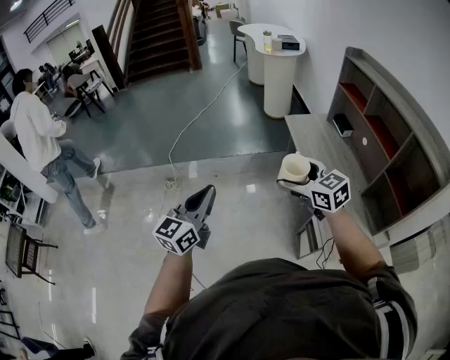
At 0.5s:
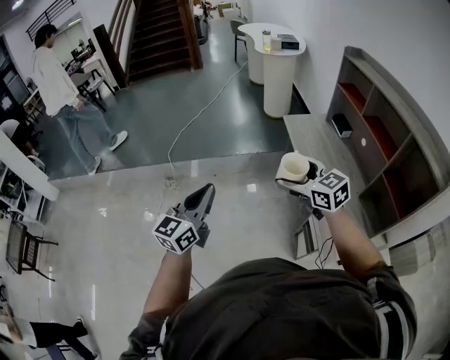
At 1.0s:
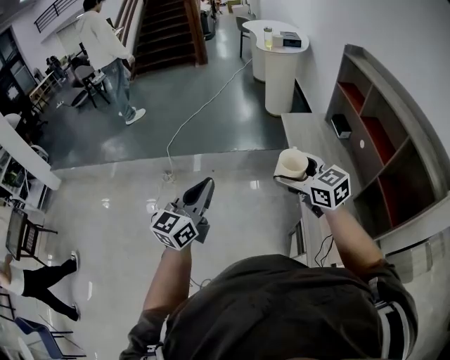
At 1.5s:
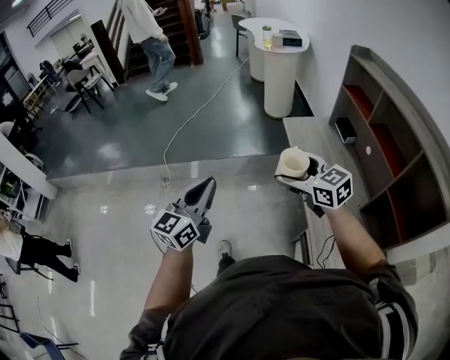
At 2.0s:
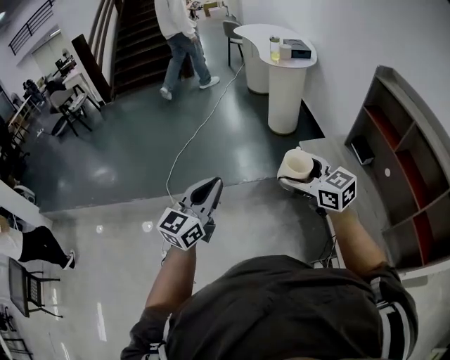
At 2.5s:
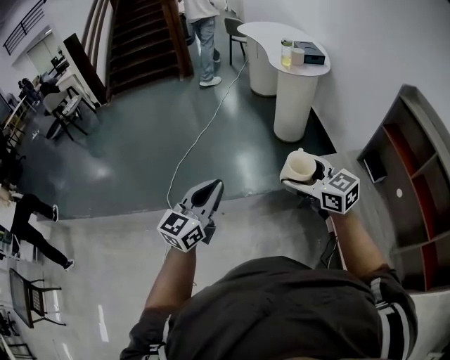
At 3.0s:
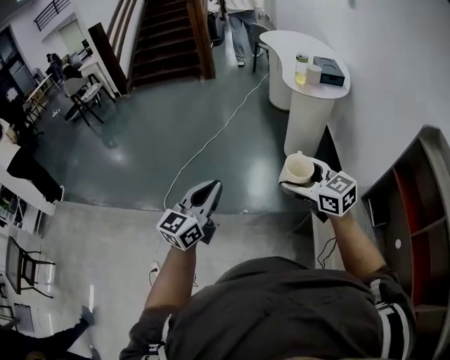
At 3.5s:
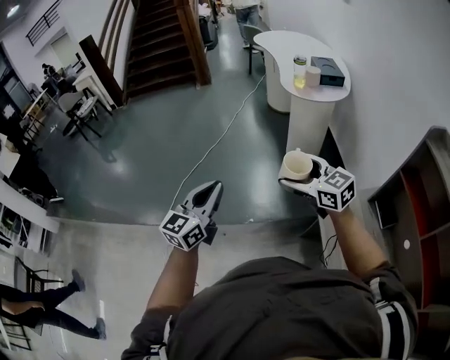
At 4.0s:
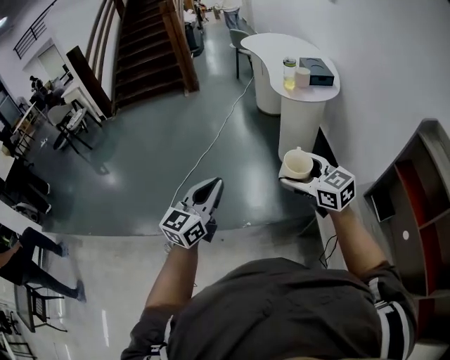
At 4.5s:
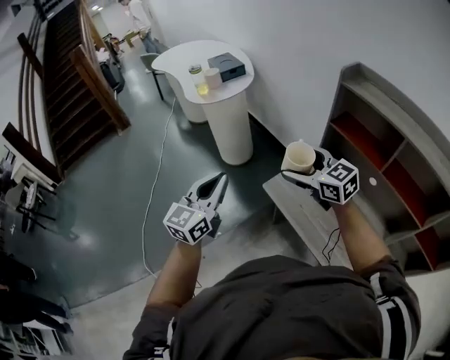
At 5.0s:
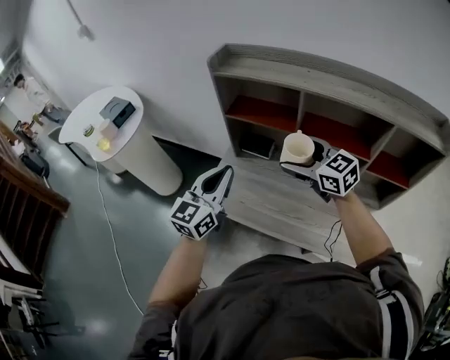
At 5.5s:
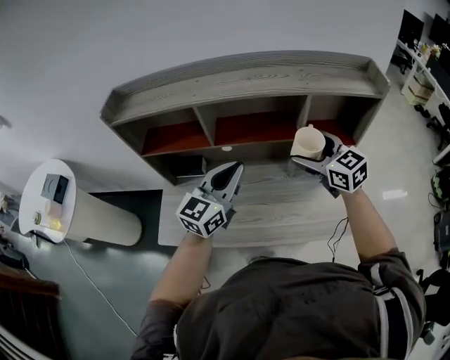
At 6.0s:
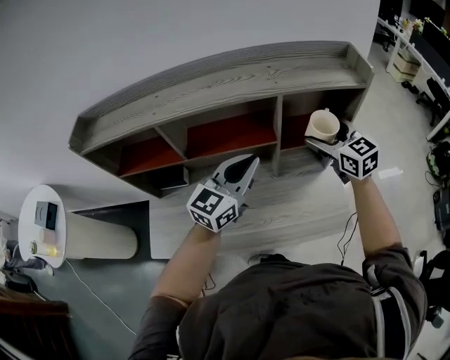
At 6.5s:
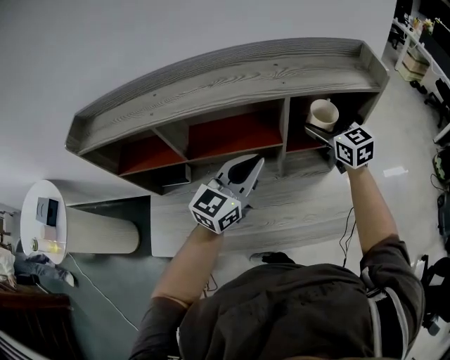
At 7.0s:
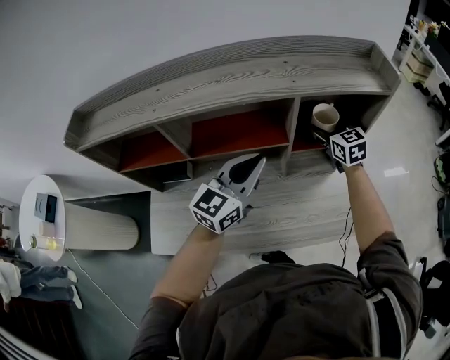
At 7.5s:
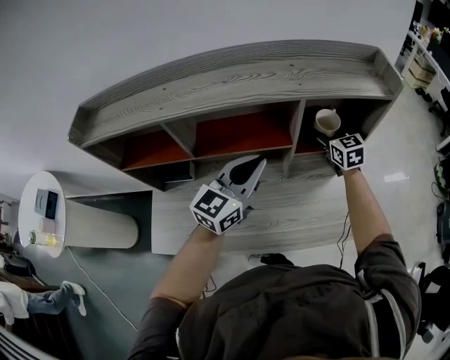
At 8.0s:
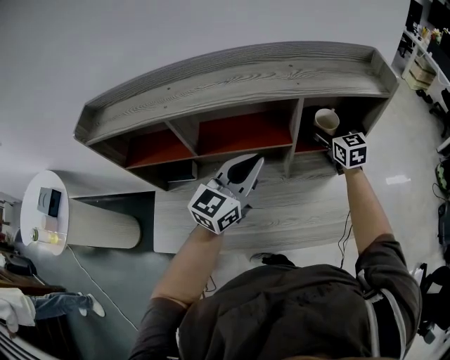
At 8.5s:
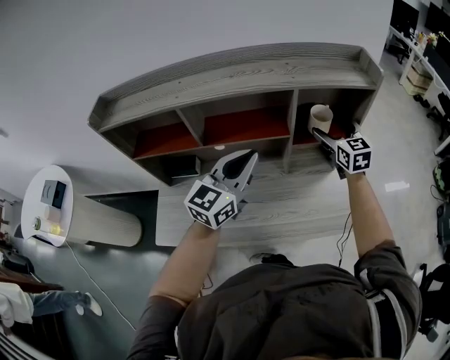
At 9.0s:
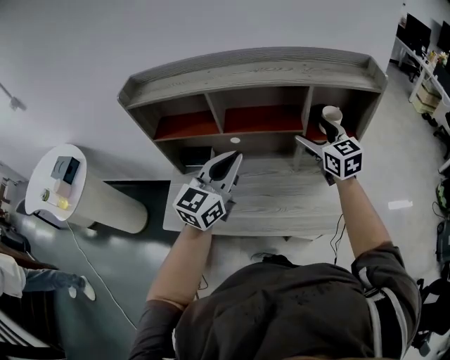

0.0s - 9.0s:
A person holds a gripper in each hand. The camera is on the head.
0.0s - 2.0s: Both grippers move forward, about 30 cm.
2.0s - 4.5s: The right gripper changes place by roughly 40 cm, and swivels roughly 20 degrees. The left gripper shifts by some 40 cm, and swivels about 20 degrees.
4.5s - 7.0s: The two grippers travel together, some 70 cm. The right gripper rotates approximately 80 degrees. The left gripper turns by roughly 70 degrees.
7.0s - 9.0s: The right gripper travels backward, upward and to the left by about 25 cm, while the left gripper goes about 20 cm backward, to the left and upward.

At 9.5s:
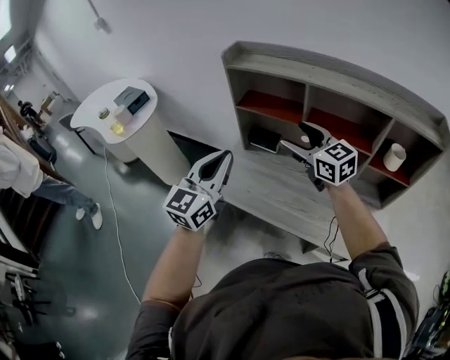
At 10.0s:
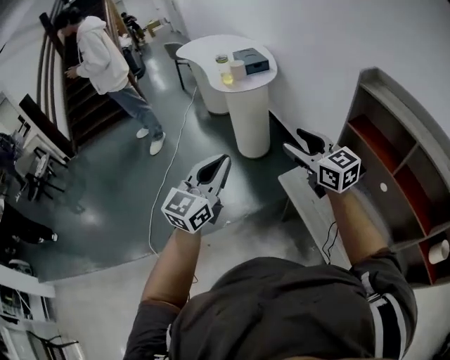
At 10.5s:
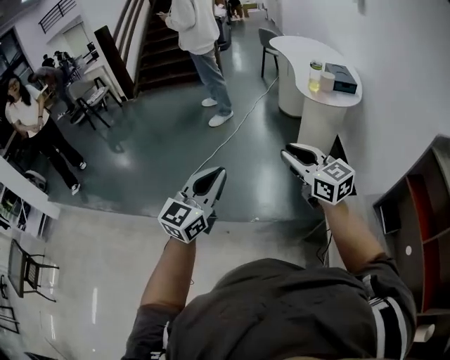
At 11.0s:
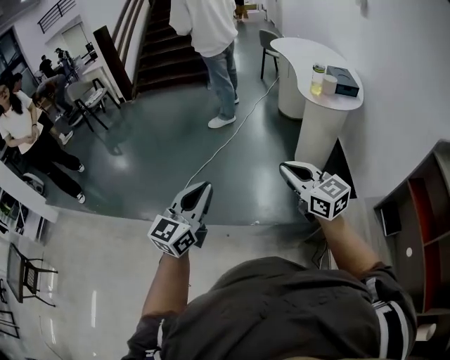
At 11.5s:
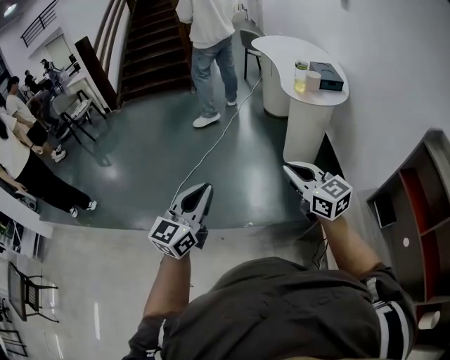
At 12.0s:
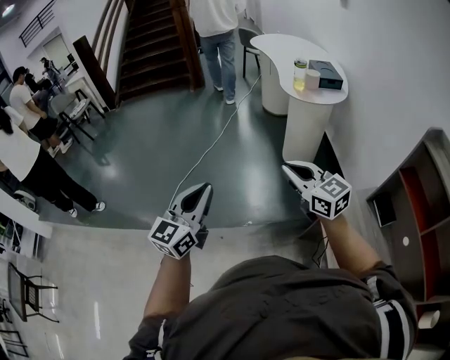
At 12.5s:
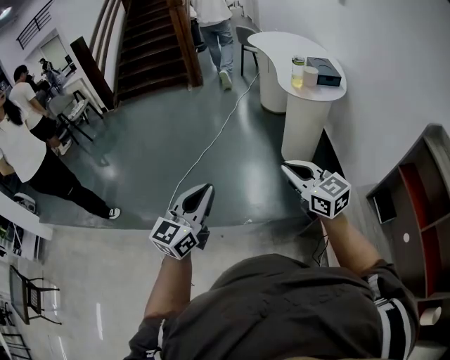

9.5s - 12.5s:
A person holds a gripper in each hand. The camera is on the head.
9.5s - 11.0s: The two grippers travel together, roughly 50 cm. The left gripper rotates approximately 60 degrees; the right gripper swivels some 70 degrees, and closes its fingers.
11.0s - 12.5s: The grippers stay close to where they were, moving slightly.

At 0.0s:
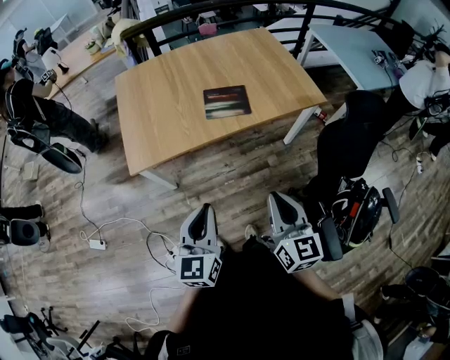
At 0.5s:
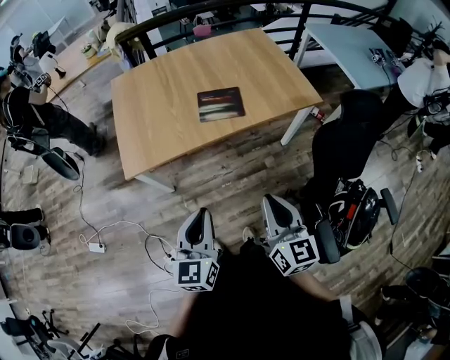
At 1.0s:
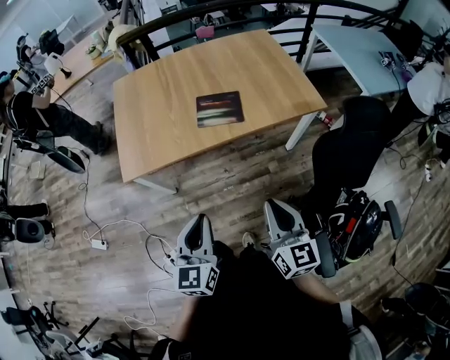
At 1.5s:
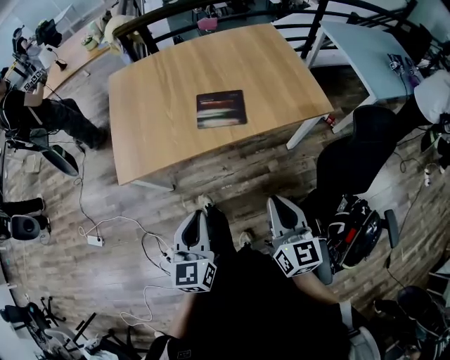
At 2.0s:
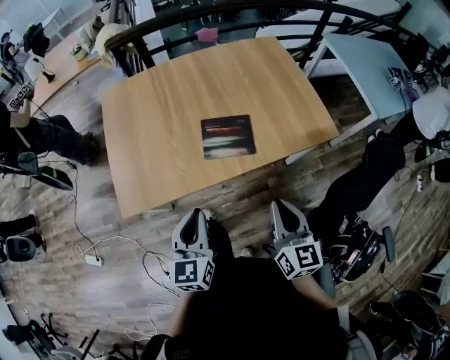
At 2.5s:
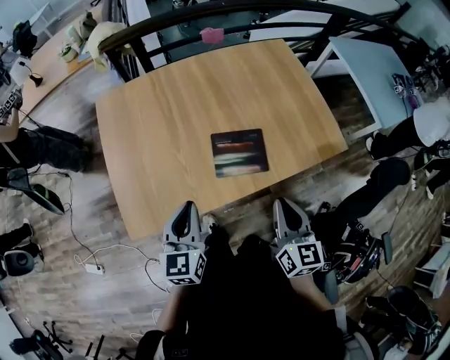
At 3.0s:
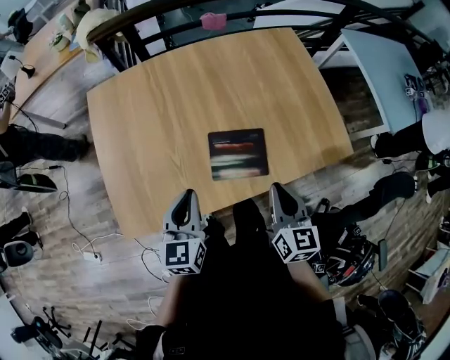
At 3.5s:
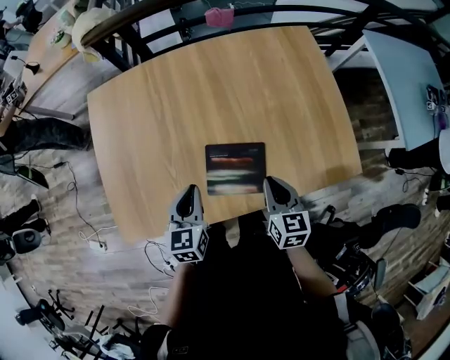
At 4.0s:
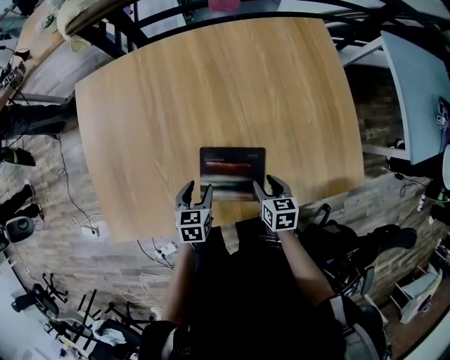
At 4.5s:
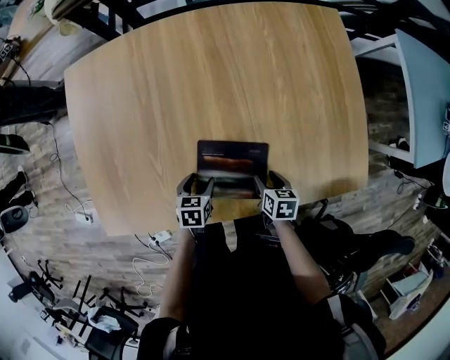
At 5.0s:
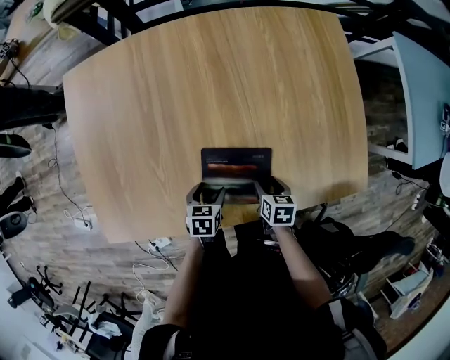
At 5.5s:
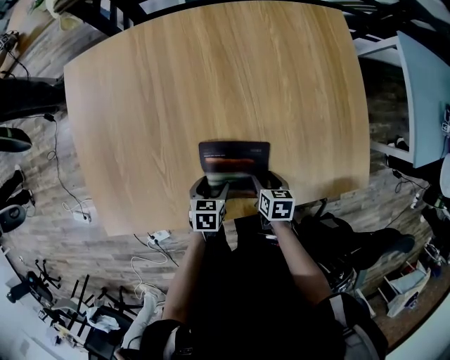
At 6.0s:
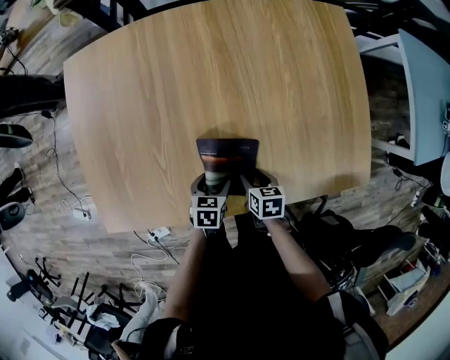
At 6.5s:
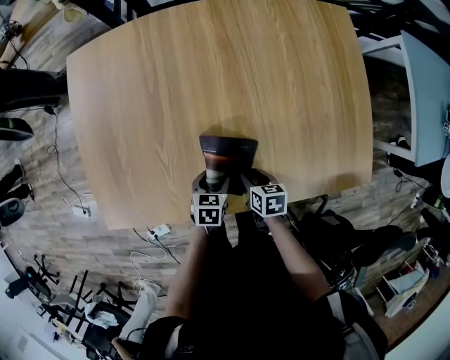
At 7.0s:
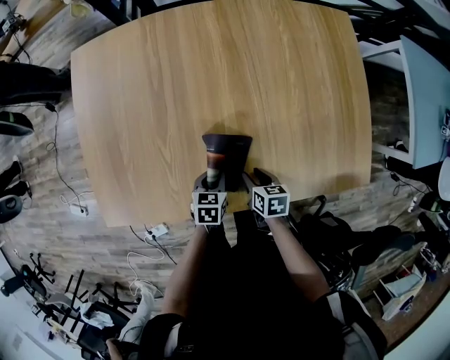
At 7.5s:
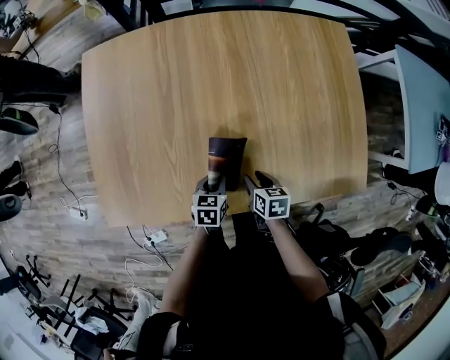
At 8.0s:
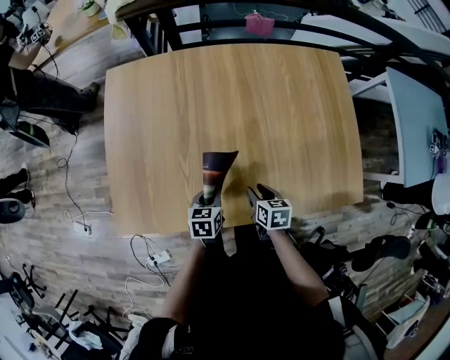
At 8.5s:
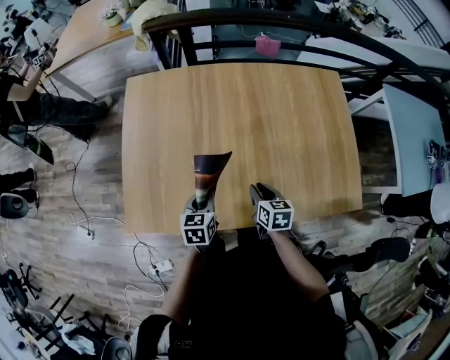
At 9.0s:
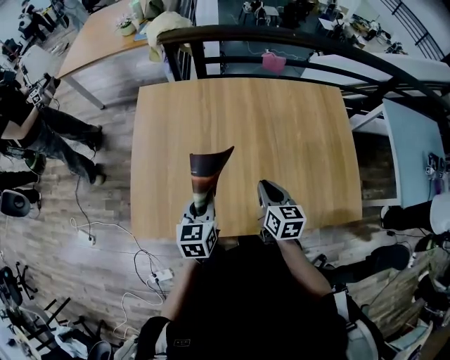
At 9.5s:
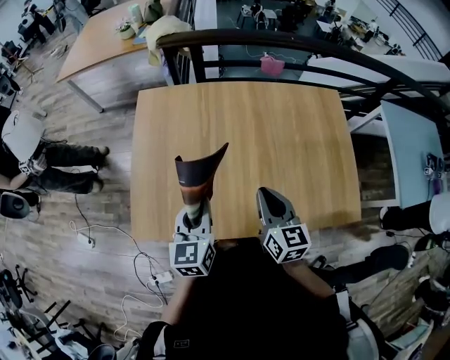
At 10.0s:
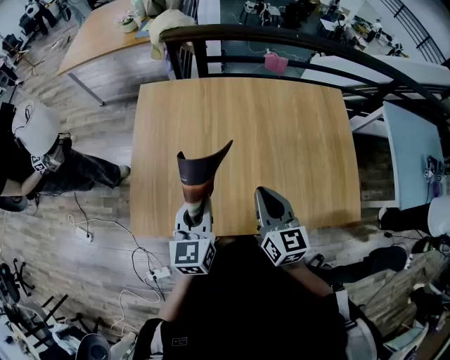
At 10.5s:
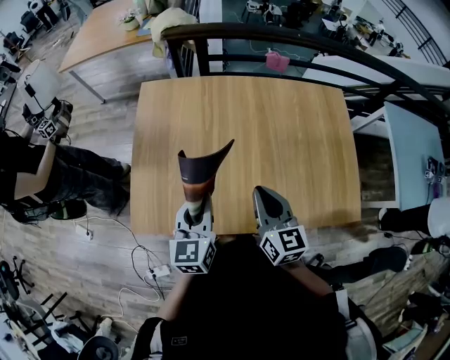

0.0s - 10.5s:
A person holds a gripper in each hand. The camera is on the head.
0.0s - 2.0s: Both grippers move forward, roughly 25 cm.
2.0s - 4.0s: Both grippers move forward and downward, roughly 40 cm. The left gripper tilts its fingers about 40 degrees downward, and opens up, while the right gripper points its fingers about 40 degrees further downward, and opens.
4.0s - 6.5s: The right gripper shifts about 10 cm to the left and downward. The left gripper travels downward by roughly 10 cm.
6.5s - 8.5s: The right gripper travels upward by about 15 cm, and turns by roughly 20 degrees, while the left gripper heads upward and to the left, covering roughly 20 cm, rotates approximately 20 degrees, and closes its fingers.
8.5s - 10.5s: The grippers both shift upward by roughly 20 cm. The left gripper changes its angle by roughly 30 degrees. The right gripper changes its angle by approximately 30 degrees.

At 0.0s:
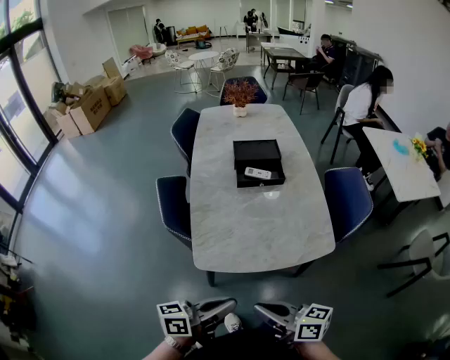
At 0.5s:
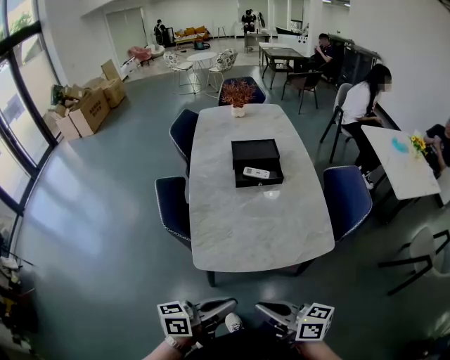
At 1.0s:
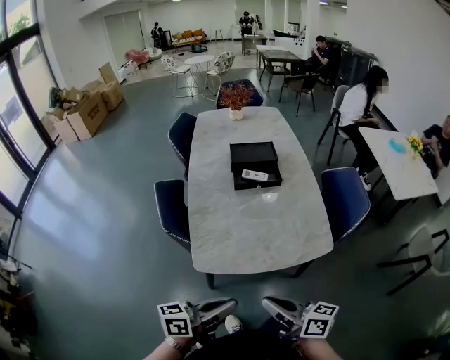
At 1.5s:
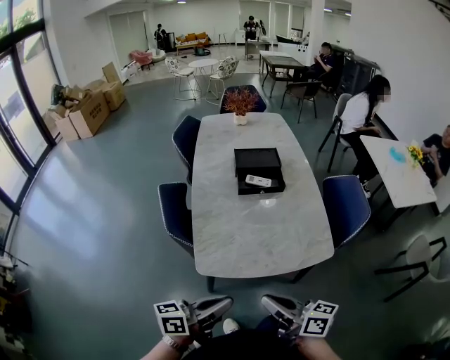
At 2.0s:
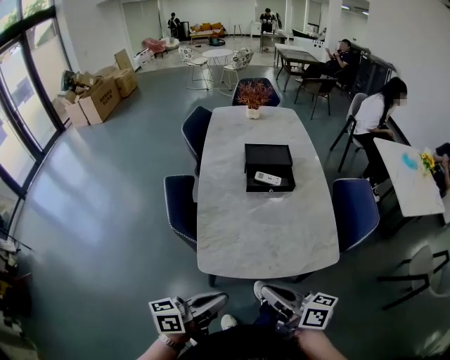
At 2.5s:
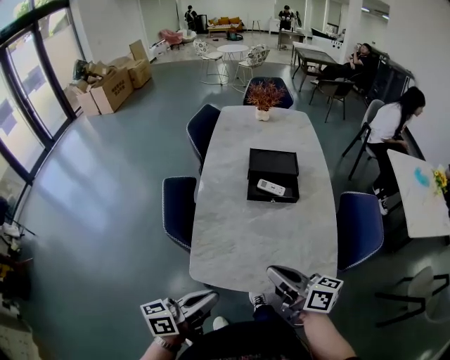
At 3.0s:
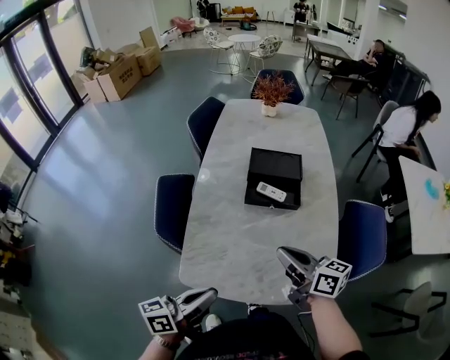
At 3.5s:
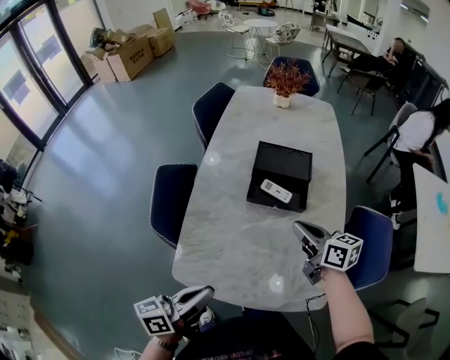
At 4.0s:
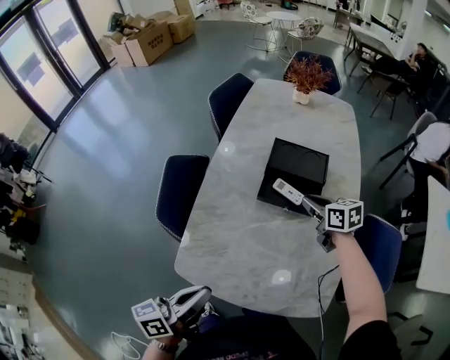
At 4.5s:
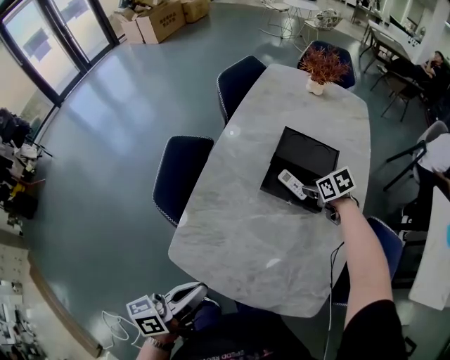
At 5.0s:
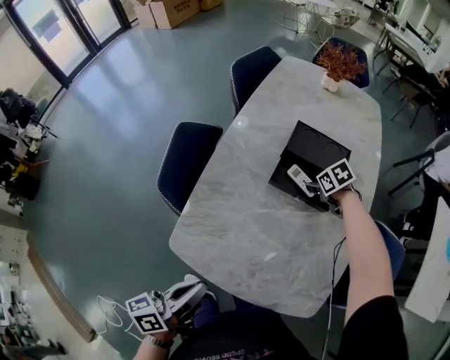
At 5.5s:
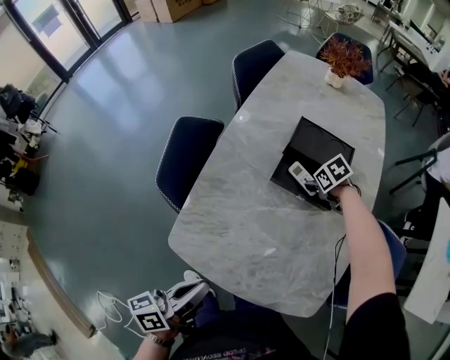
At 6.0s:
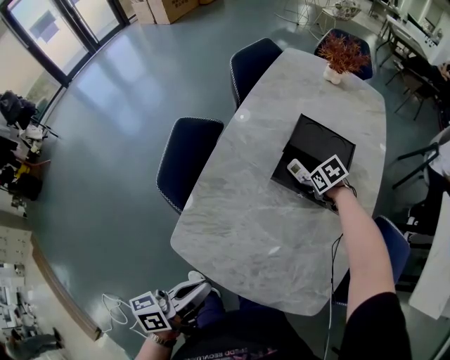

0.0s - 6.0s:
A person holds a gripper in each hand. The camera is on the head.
0.0s - 2.0s: The right gripper goes about 10 cm forward; the left gripper ends up some 5 cm from where it was.
2.0s - 4.0s: The left gripper moves forward and to the right, some 15 cm, and changes its angle by roughly 30 degrees; the right gripper is displaced forward and to the right by about 50 cm, and tips its fingers downward by roughly 30 degrees.
4.0s - 6.0s: The right gripper is displaced downward and forward by some 15 cm, points its fingers approximately 40 degrees further downward, and opens.
